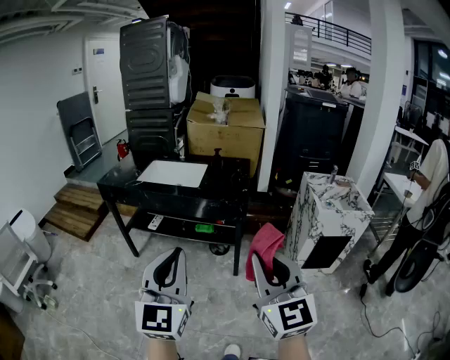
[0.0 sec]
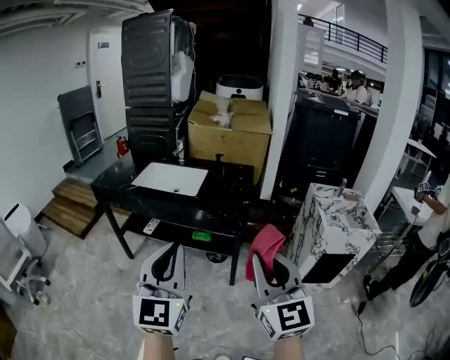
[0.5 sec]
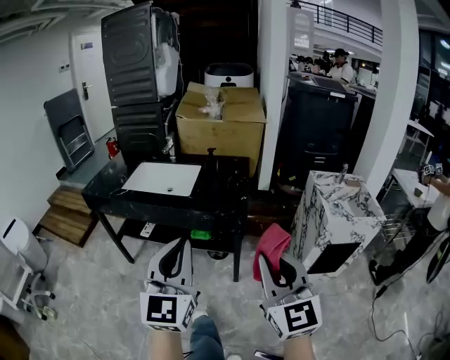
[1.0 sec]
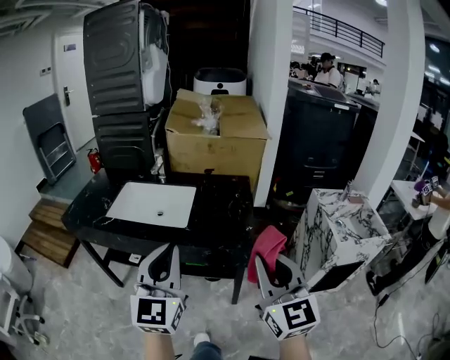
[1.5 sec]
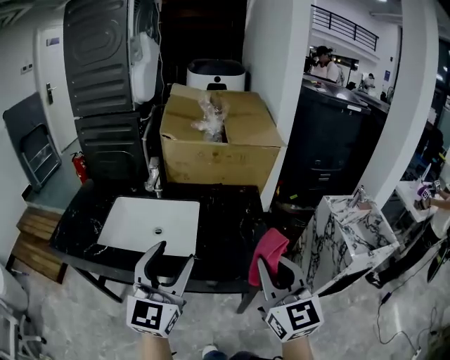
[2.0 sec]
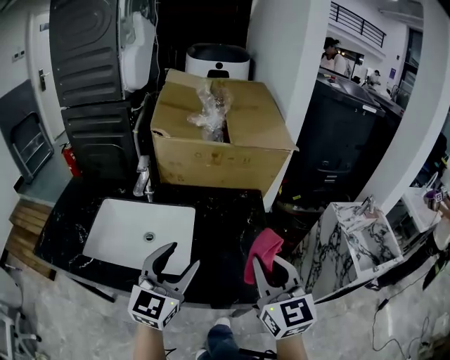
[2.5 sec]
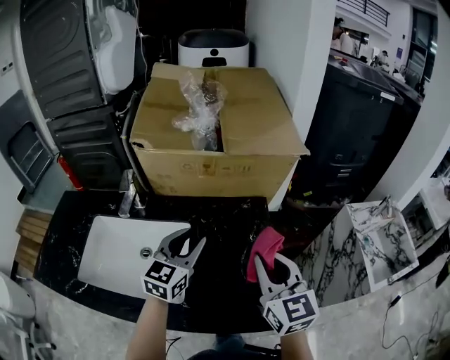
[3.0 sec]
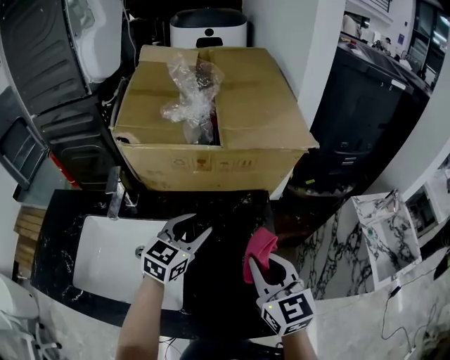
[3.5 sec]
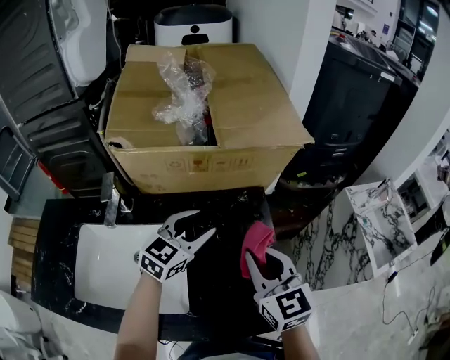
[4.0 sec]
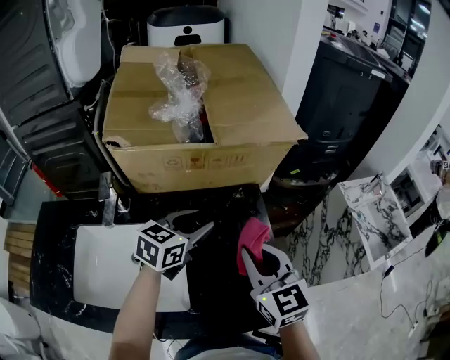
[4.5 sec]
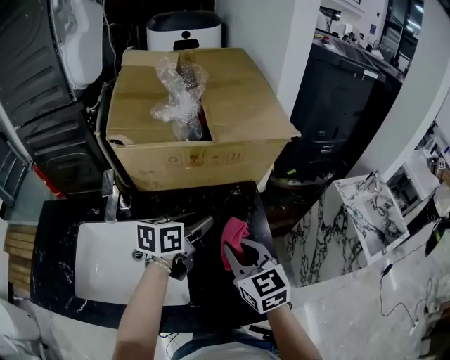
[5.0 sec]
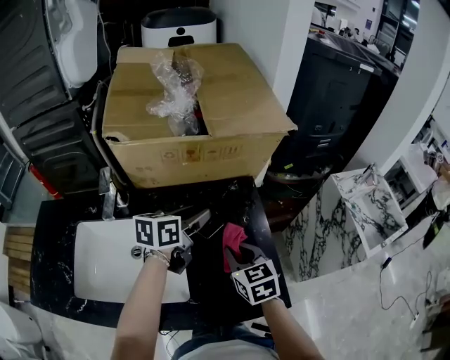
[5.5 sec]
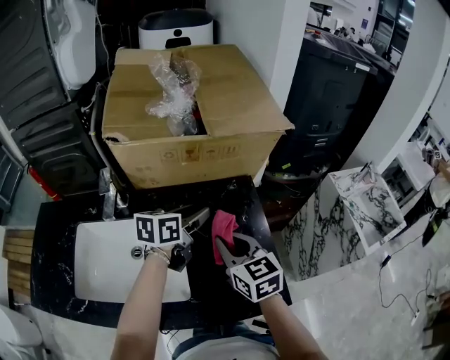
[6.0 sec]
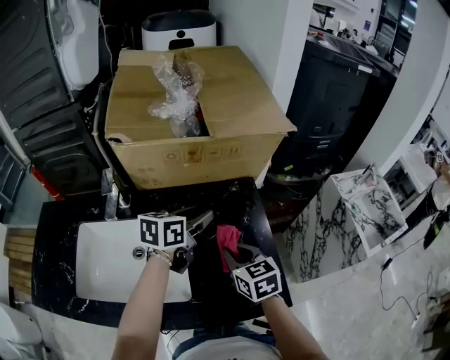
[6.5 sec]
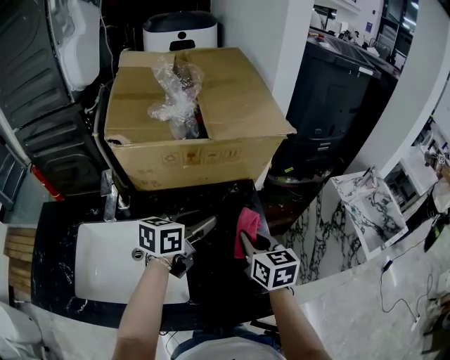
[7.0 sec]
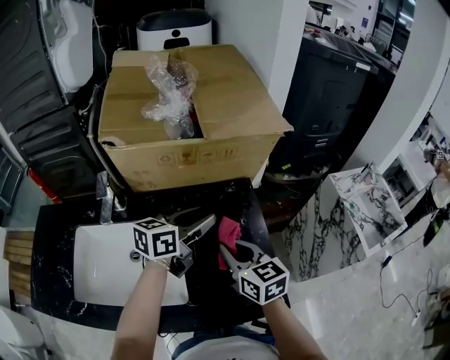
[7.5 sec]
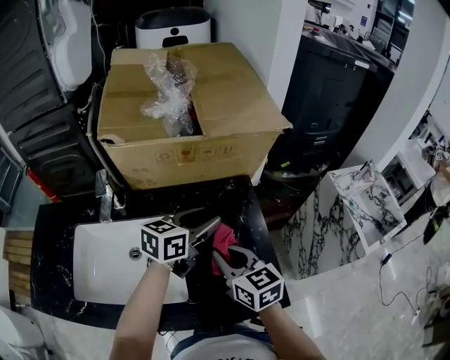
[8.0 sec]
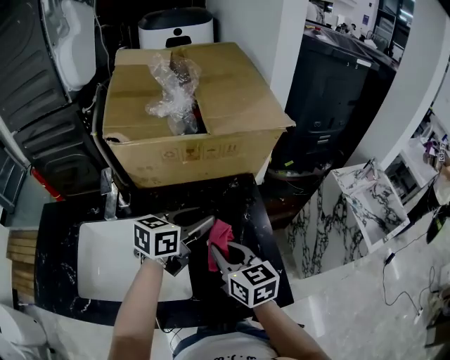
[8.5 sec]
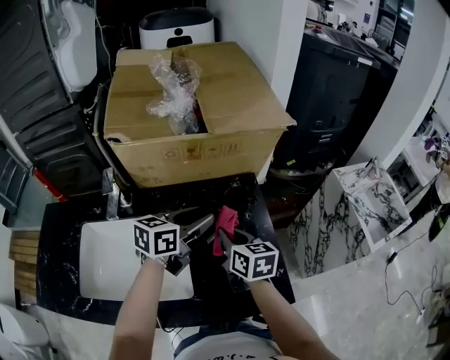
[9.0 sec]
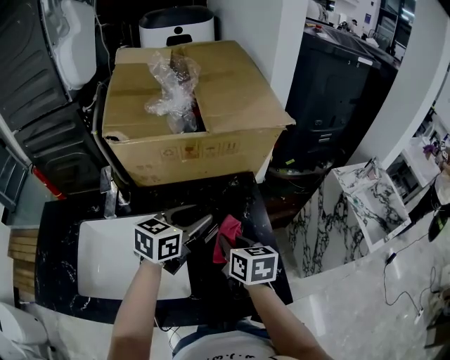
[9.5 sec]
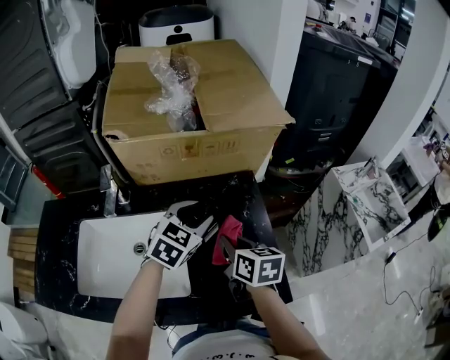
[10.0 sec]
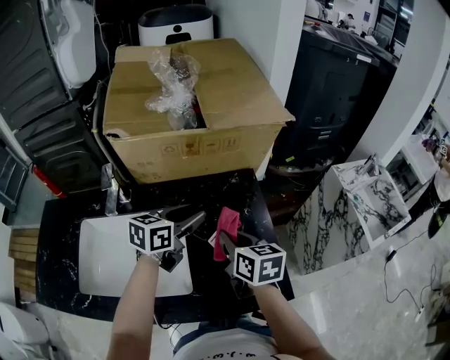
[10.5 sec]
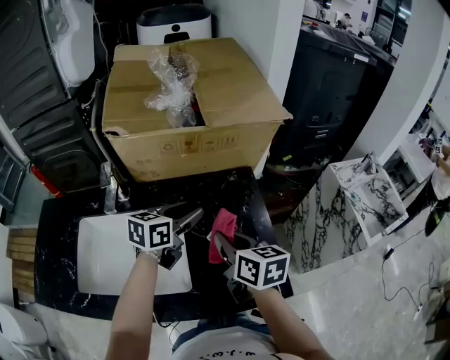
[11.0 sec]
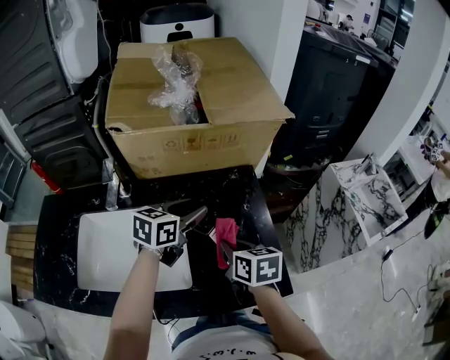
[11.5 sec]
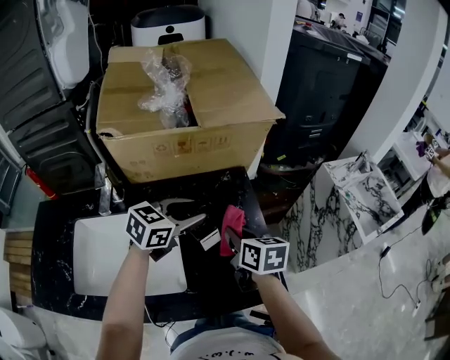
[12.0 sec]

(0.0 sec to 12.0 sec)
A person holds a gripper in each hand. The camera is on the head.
0.0 sec - 2.0 sec: Both grippers are carried forward, some 50 cm. The left gripper opens.
2.0 sec - 4.0 sec: Both grippers travel together forward, about 35 cm. The left gripper rotates roughly 40 degrees.
4.0 sec - 6.0 sec: The left gripper swivels some 40 degrees. Meanwhile the right gripper heads to the left, covering approximately 5 cm.
8.0 sec - 10.0 sec: The left gripper swivels about 40 degrees, while the right gripper swivels roughly 20 degrees.
10.0 sec - 12.0 sec: The left gripper turns by approximately 30 degrees.

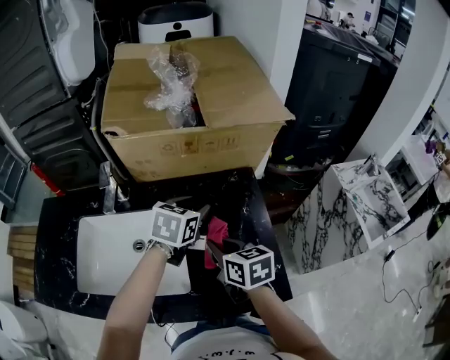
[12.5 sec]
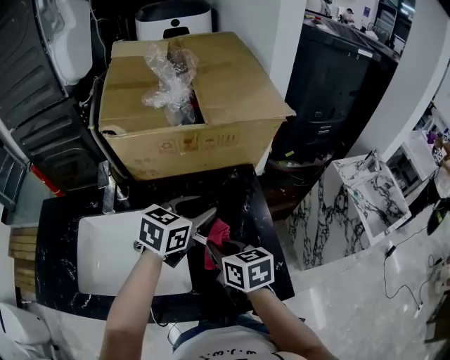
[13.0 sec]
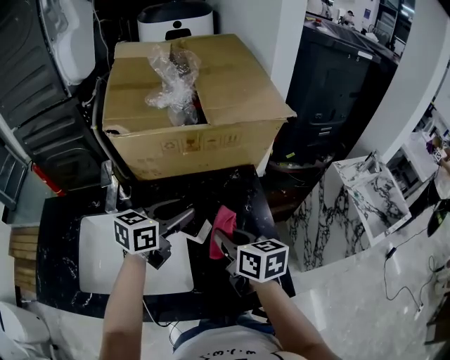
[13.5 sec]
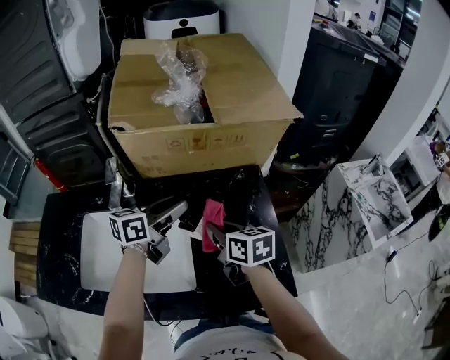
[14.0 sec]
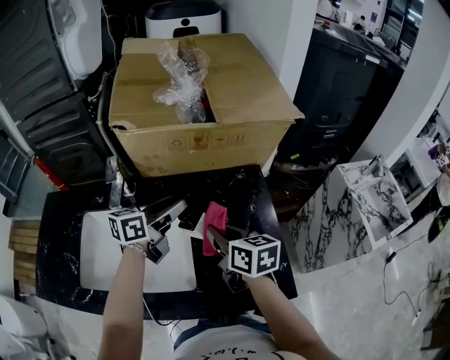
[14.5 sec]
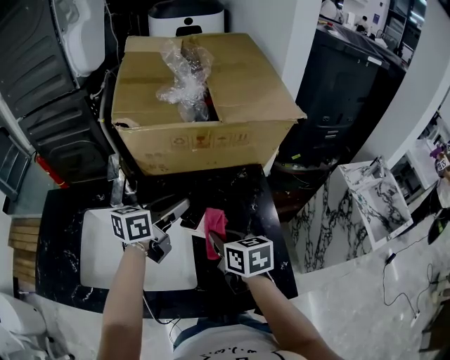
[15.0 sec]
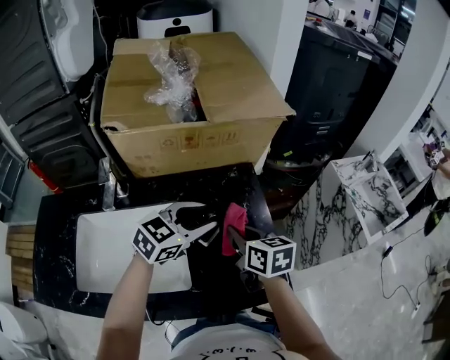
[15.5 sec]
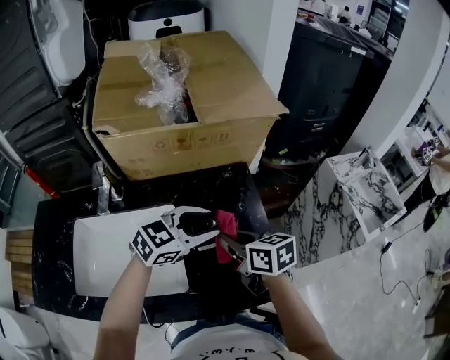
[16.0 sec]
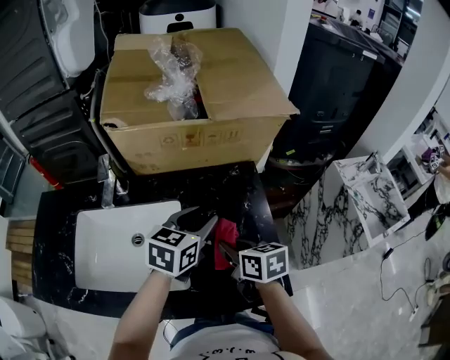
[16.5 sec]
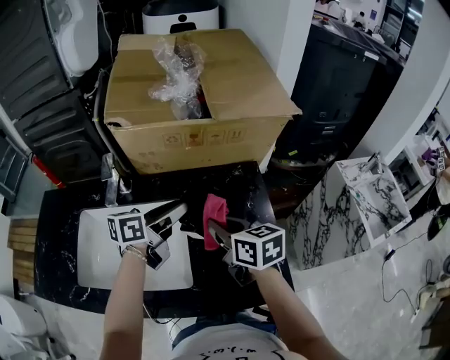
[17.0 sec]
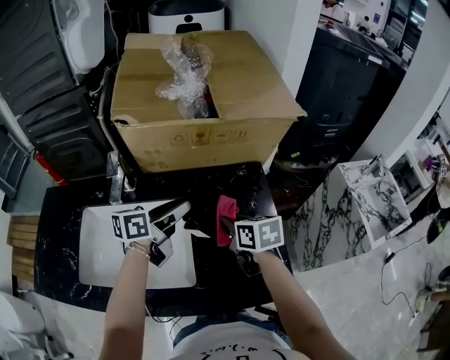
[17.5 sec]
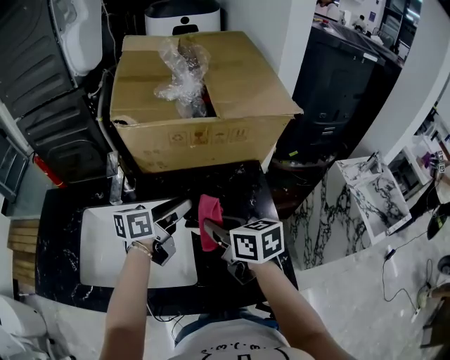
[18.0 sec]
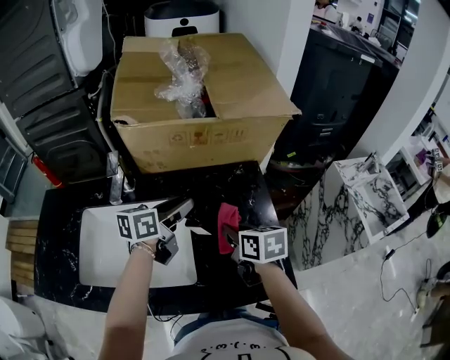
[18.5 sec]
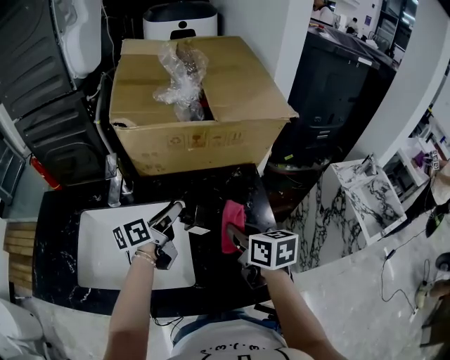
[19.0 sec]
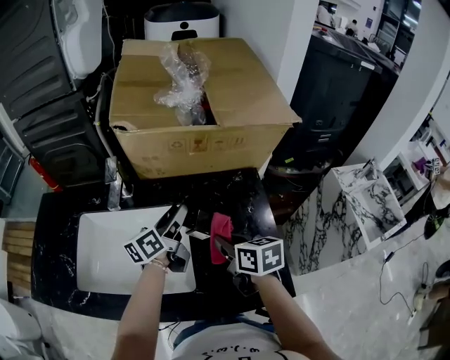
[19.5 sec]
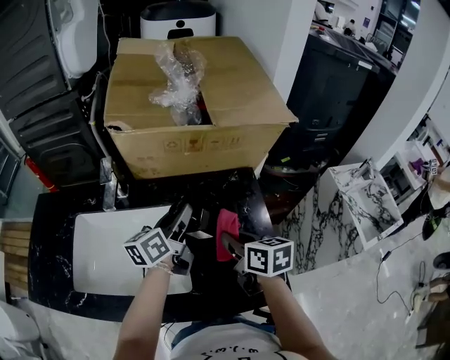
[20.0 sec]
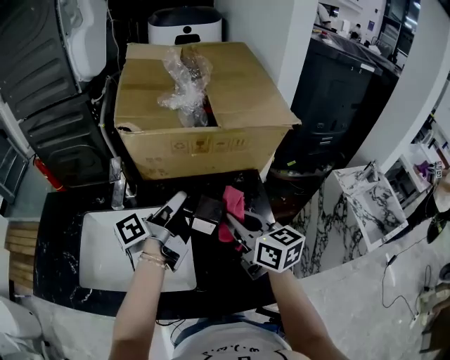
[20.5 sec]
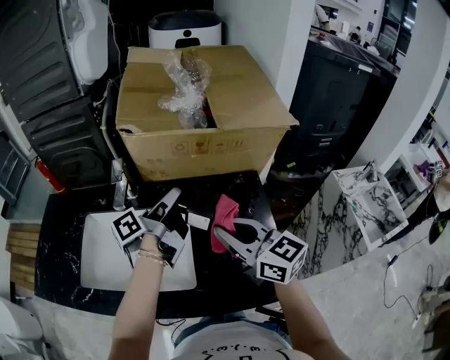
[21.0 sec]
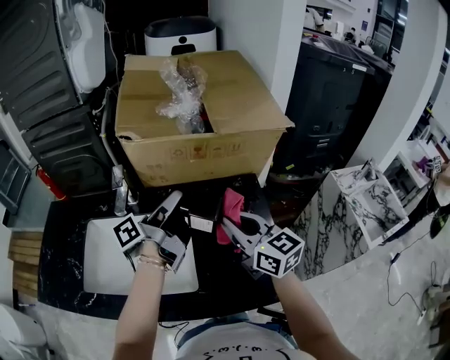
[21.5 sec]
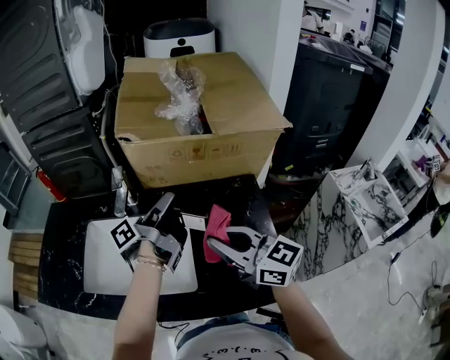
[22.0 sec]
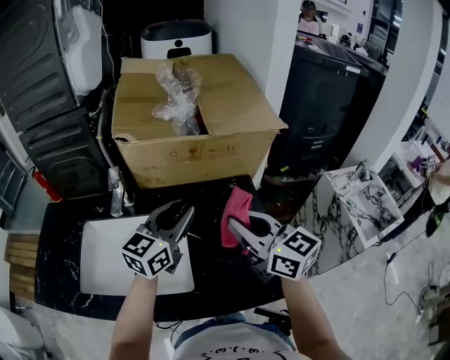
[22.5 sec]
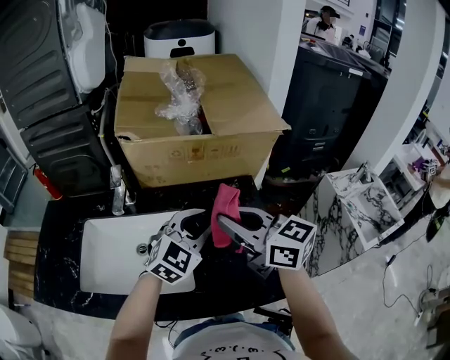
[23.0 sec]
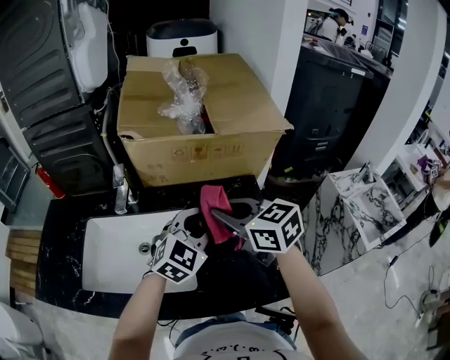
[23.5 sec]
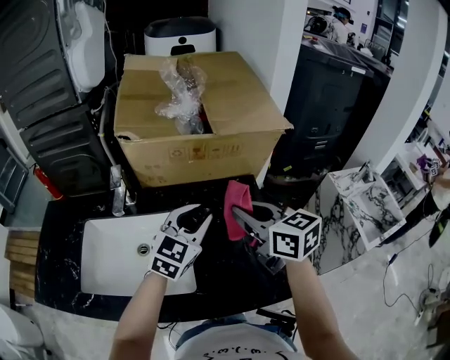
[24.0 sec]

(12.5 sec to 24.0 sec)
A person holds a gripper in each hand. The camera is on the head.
12.5 sec - 14.5 sec: The left gripper shifts about 10 cm to the left, and swivels some 40 degrees.
14.5 sec - 16.5 sec: The left gripper moves to the right, approximately 10 cm, and rotates approximately 30 degrees; the right gripper changes place by some 5 cm.
16.5 sec - 18.5 sec: The right gripper swings up and down, about 5 cm each way, with 3 reversals, while the left gripper goes roughly 10 cm to the left, and rotates approximately 30 degrees.
20.0 sec - 22.0 sec: The right gripper is displaced upward, to the left and backward by roughly 15 cm, and tilts its fingers approximately 30 degrees upward, while the left gripper goes roughly 10 cm upward, and rotates around the line of its fingers by about 40 degrees, counterclockwise from behind.
22.0 sec - 24.0 sec: The right gripper swings left and right, approximately 5 cm each way, with 2 reversals, and rotates approximately 20 degrees; the left gripper goes some 10 cm to the right, and rolls clockwise, seen from behind, by roughly 100 degrees.

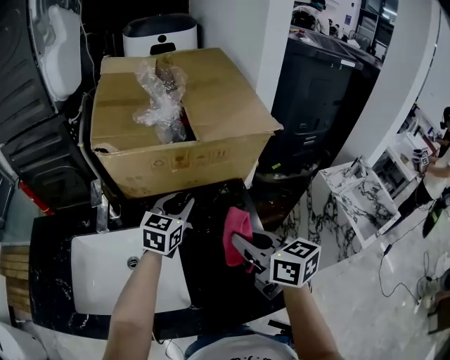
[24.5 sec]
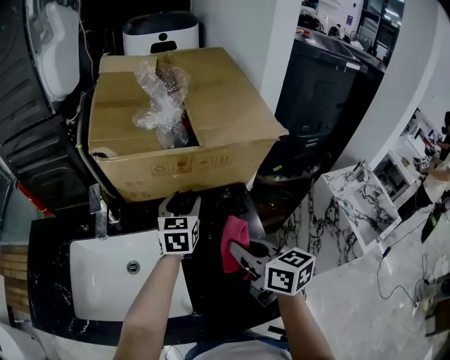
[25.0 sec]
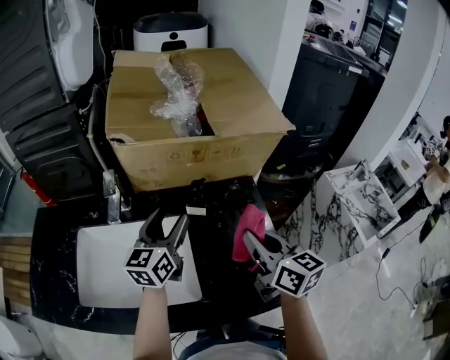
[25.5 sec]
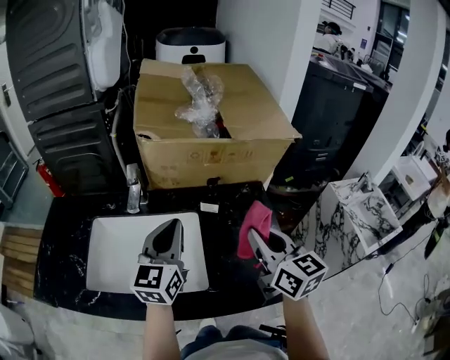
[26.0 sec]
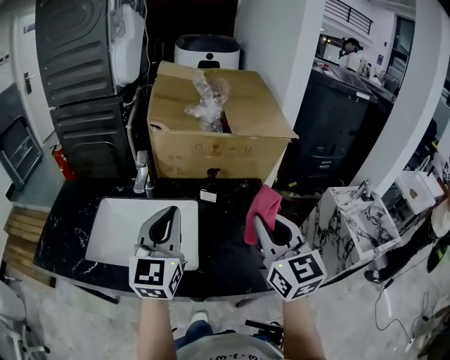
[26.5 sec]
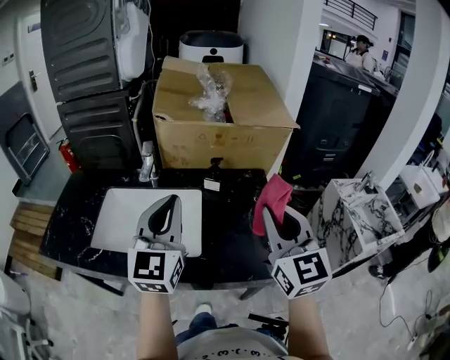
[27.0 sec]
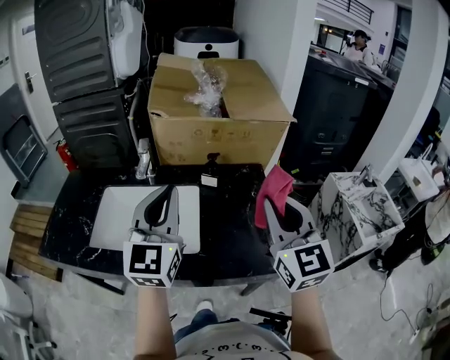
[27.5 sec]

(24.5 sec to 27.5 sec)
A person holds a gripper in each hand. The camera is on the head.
24.5 sec - 26.0 sec: The right gripper travels backward by some 5 cm. The left gripper shifts some 20 cm backward, to the left and upward, swivels approximately 30 degrees, and opens, then closes once more.
26.0 sec - 27.5 sec: Both grippers travel together backward and upward, roughly 15 cm. The right gripper swivels about 30 degrees.
